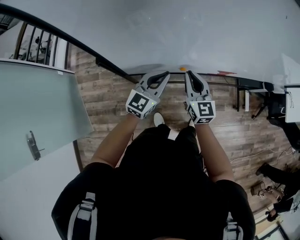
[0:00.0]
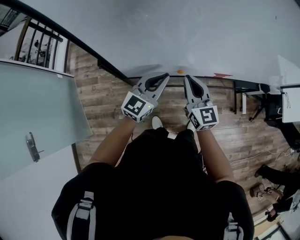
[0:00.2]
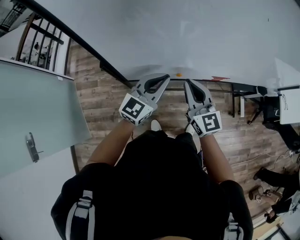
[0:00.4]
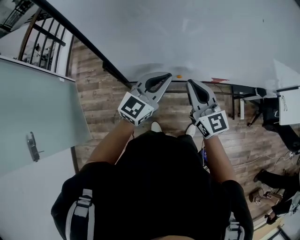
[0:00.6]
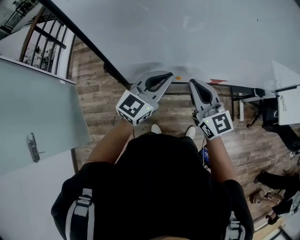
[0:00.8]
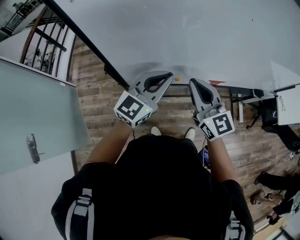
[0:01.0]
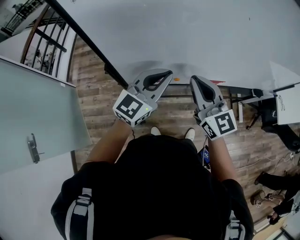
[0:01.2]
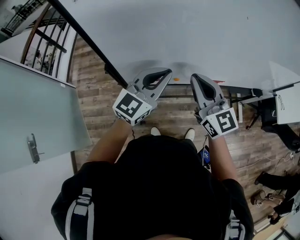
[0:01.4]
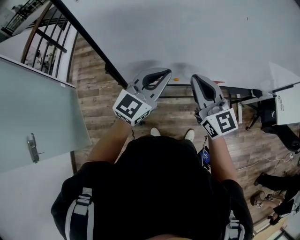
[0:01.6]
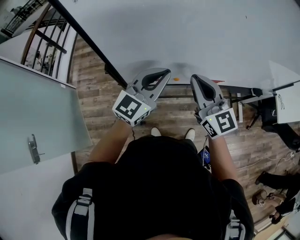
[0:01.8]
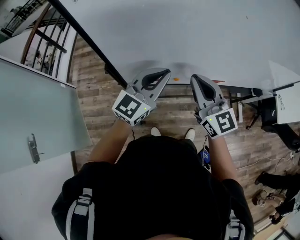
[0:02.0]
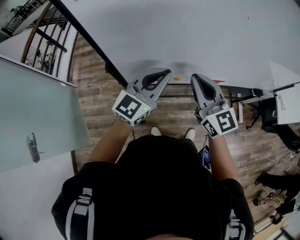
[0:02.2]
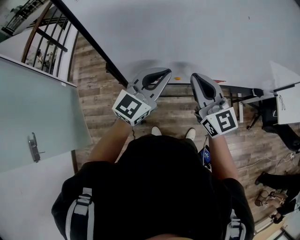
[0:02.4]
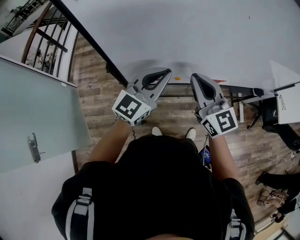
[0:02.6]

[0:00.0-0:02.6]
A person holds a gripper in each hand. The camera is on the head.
0:00.0 to 0:01.2: Both grippers move upward, some 20 cm.
0:01.2 to 0:02.6: Both grippers stay put.

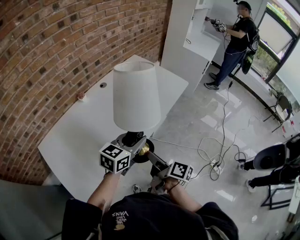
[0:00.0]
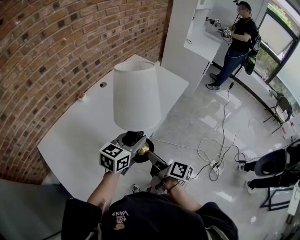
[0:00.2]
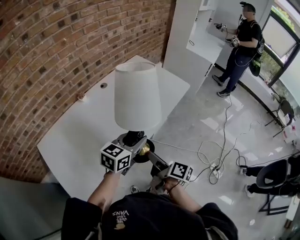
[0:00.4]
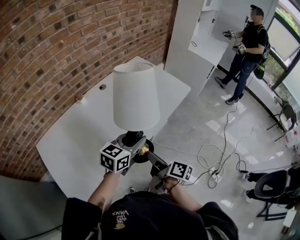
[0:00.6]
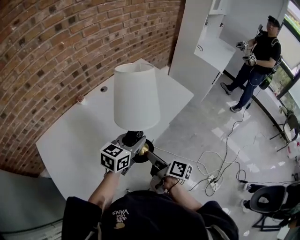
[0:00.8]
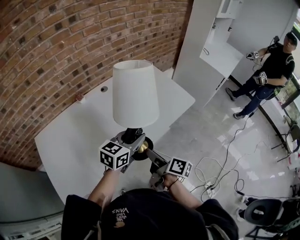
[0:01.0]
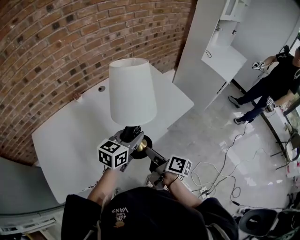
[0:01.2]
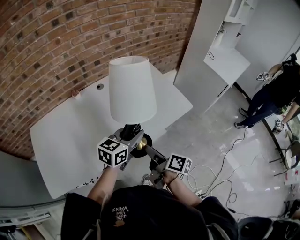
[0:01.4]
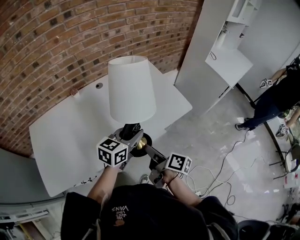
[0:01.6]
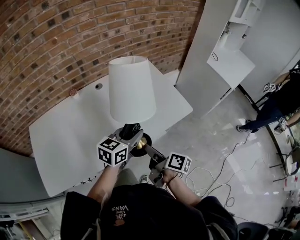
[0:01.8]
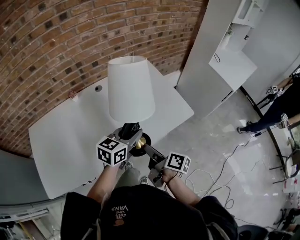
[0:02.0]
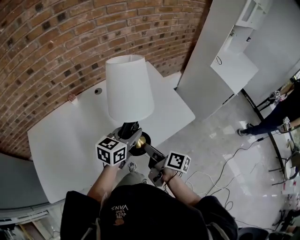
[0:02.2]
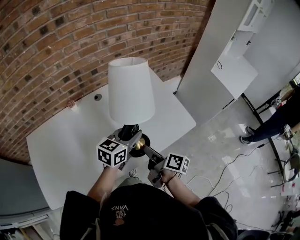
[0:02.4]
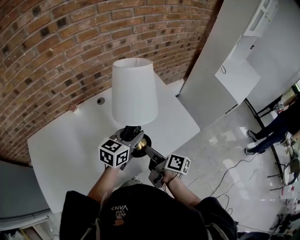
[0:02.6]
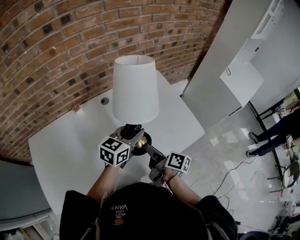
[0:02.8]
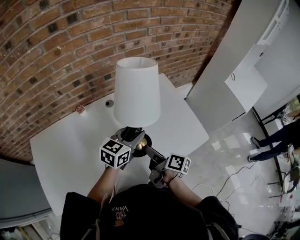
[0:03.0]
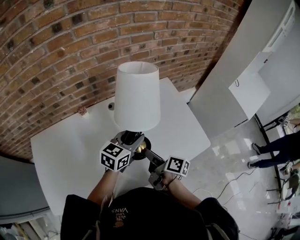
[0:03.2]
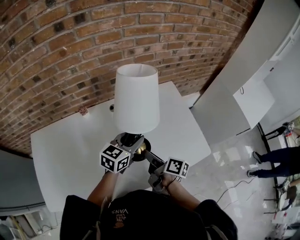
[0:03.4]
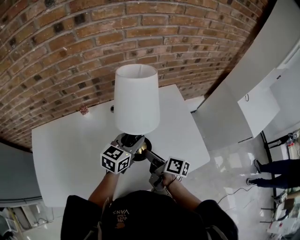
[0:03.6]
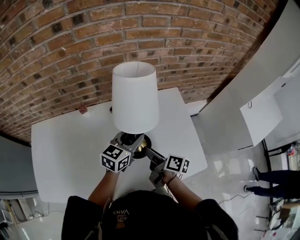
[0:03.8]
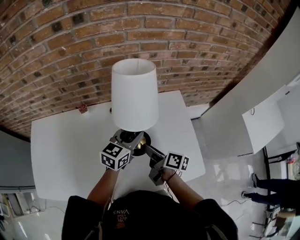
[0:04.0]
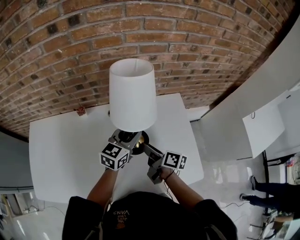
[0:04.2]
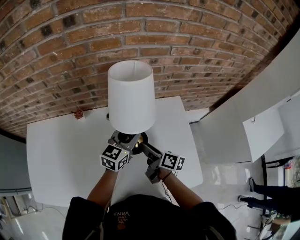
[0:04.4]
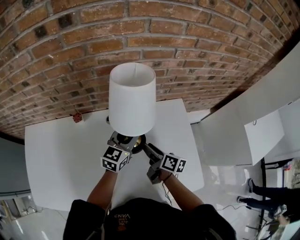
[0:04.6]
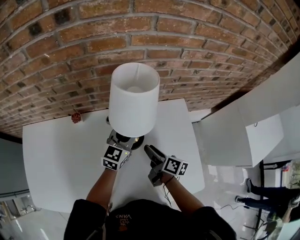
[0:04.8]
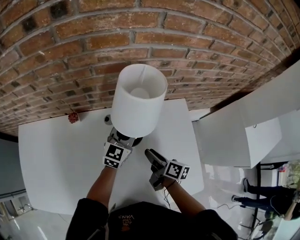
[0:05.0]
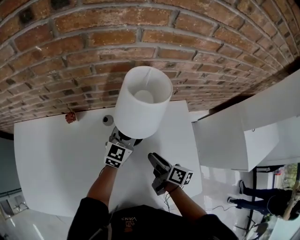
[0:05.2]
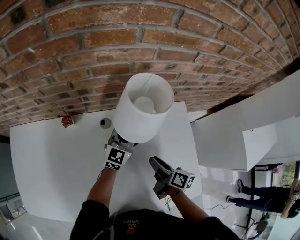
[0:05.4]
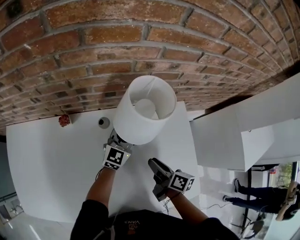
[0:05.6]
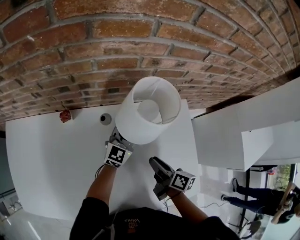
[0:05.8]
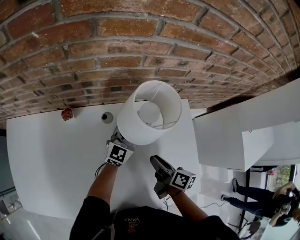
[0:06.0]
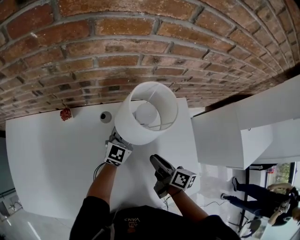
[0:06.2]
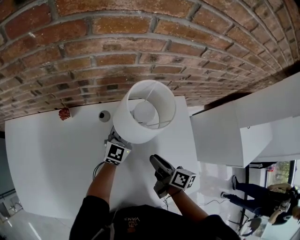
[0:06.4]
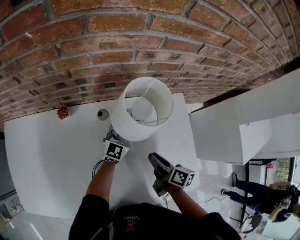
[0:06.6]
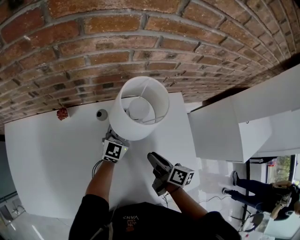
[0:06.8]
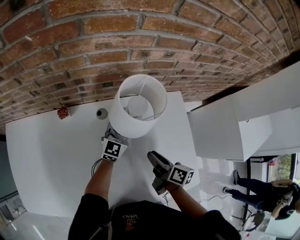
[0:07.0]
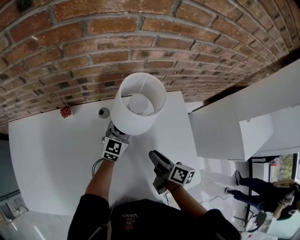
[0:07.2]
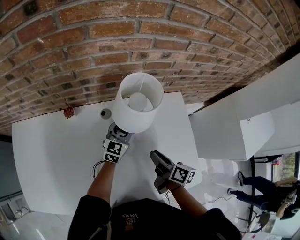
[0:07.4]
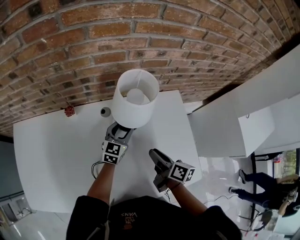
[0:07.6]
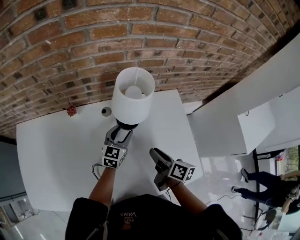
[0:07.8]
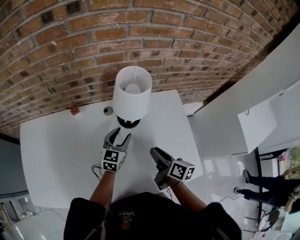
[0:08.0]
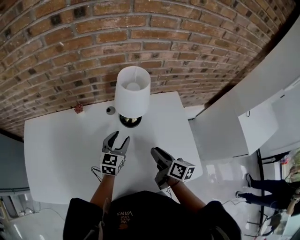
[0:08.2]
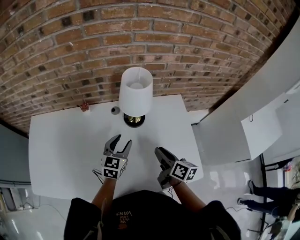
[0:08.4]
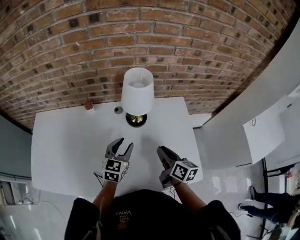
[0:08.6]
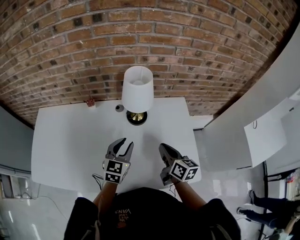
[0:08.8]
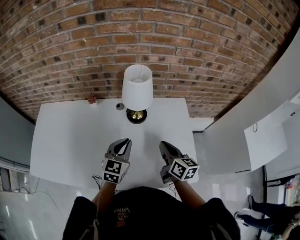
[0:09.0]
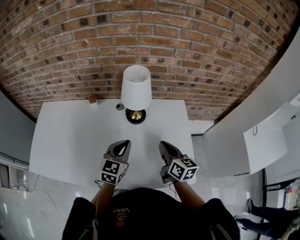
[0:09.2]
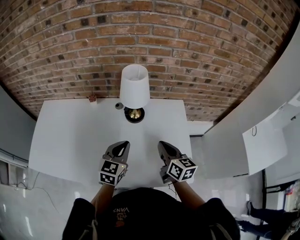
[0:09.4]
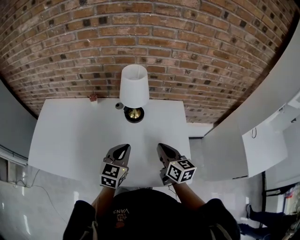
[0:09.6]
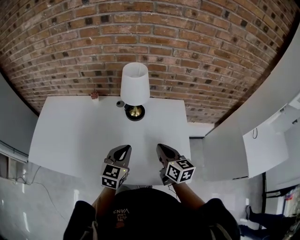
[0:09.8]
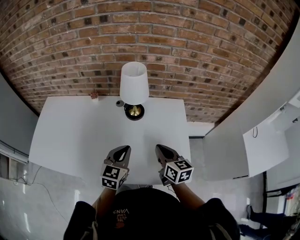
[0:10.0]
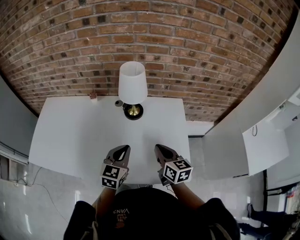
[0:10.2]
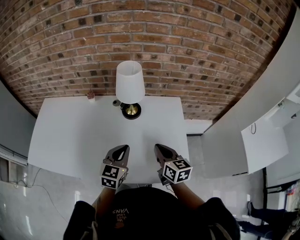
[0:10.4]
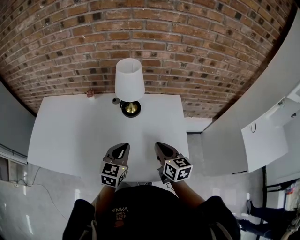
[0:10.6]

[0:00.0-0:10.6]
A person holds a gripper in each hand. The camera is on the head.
0:00.0 to 0:01.6: The two grippers go approximately 25 cm forward and to the right. The left gripper swivels roughly 20 degrees. The right gripper rotates approximately 20 degrees.
0:01.6 to 0:03.0: The grippers both shift forward and to the left by approximately 20 cm.
0:03.0 to 0:04.6: The grippers both shift forward by some 20 cm. The left gripper changes its angle by about 30 degrees, while the right gripper rotates some 20 degrees.
0:04.6 to 0:06.0: The left gripper heads downward and forward, covering about 10 cm.
0:06.0 to 0:07.6: The right gripper shifts by some 5 cm, while the left gripper is displaced backward by approximately 5 cm, and opens its fingers.
0:07.6 to 0:09.0: The left gripper is displaced backward and upward by approximately 25 cm, and closes; the right gripper goes roughly 10 cm upward and backward, turns by some 30 degrees, and closes its fingers.
0:09.0 to 0:10.6: The grippers both shift backward by roughly 5 cm.

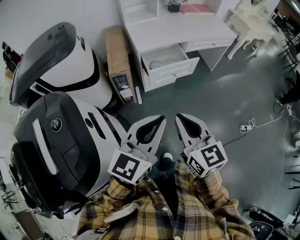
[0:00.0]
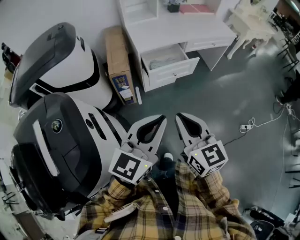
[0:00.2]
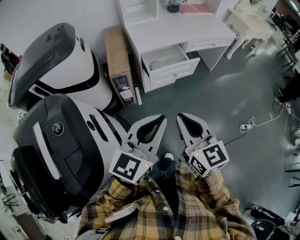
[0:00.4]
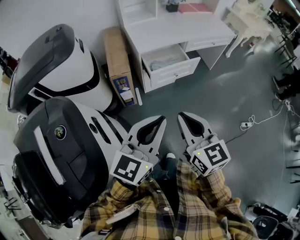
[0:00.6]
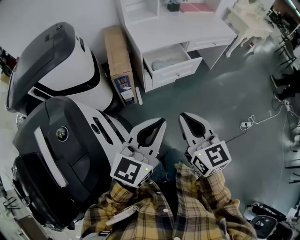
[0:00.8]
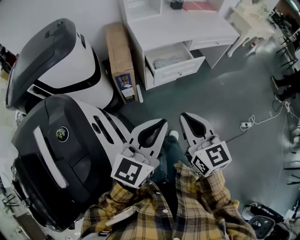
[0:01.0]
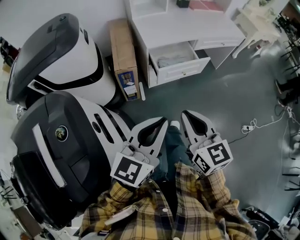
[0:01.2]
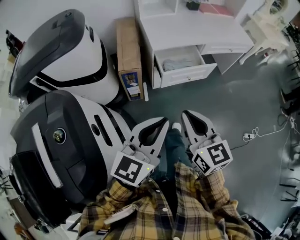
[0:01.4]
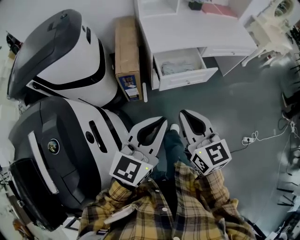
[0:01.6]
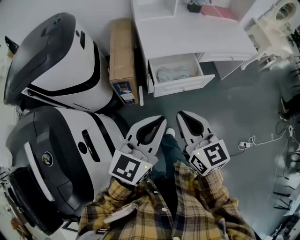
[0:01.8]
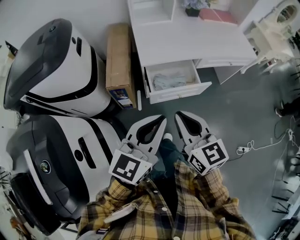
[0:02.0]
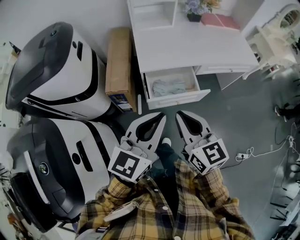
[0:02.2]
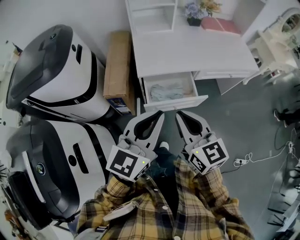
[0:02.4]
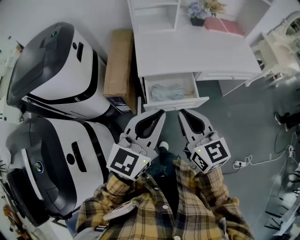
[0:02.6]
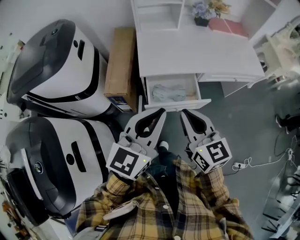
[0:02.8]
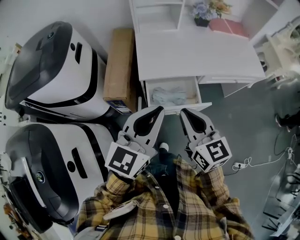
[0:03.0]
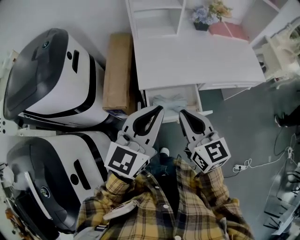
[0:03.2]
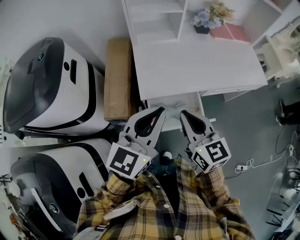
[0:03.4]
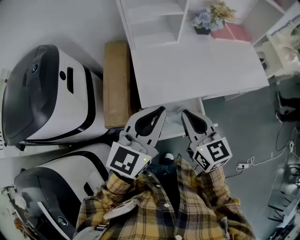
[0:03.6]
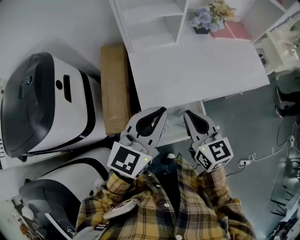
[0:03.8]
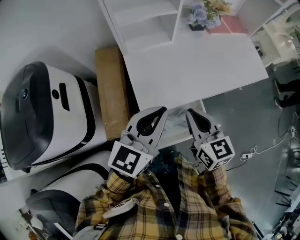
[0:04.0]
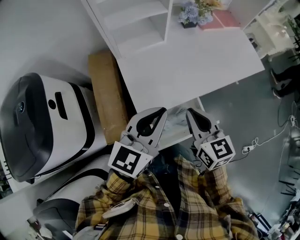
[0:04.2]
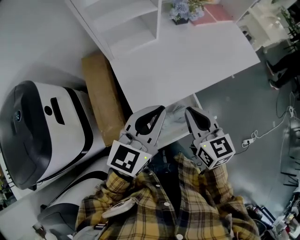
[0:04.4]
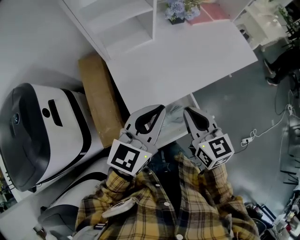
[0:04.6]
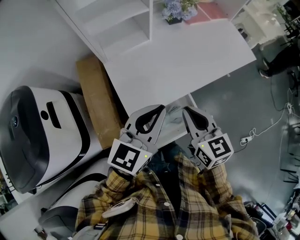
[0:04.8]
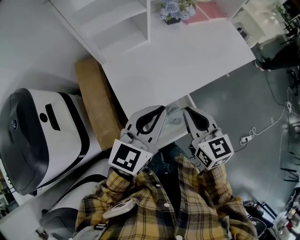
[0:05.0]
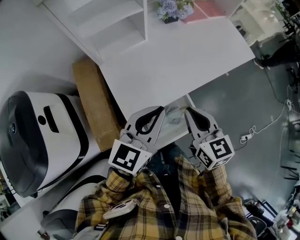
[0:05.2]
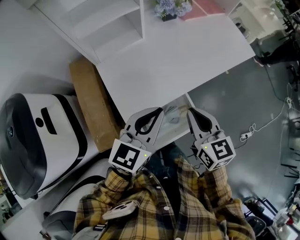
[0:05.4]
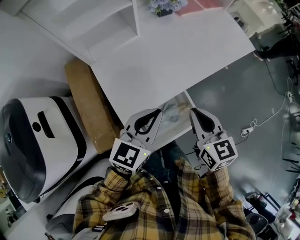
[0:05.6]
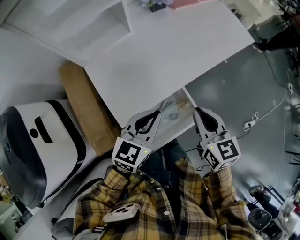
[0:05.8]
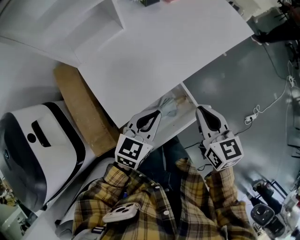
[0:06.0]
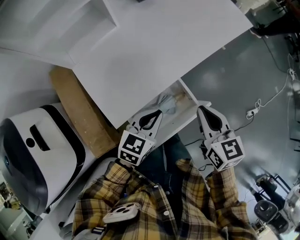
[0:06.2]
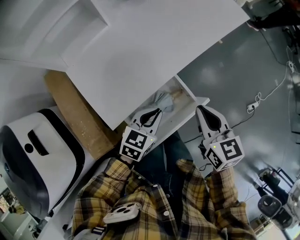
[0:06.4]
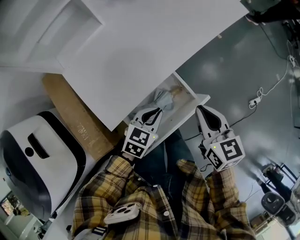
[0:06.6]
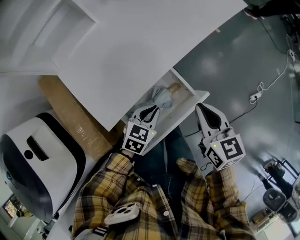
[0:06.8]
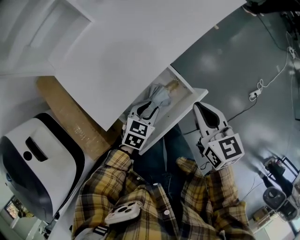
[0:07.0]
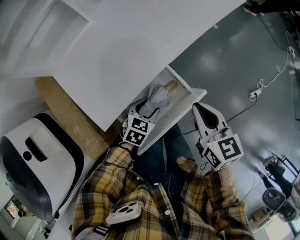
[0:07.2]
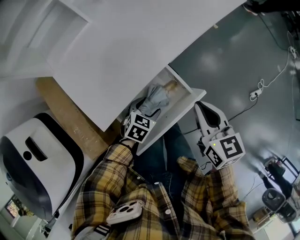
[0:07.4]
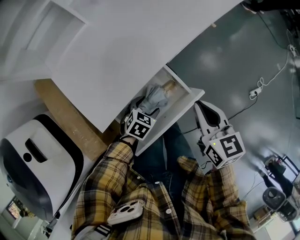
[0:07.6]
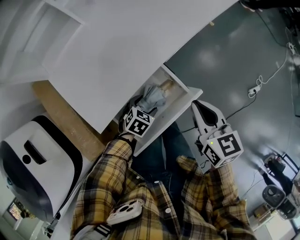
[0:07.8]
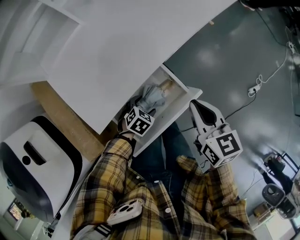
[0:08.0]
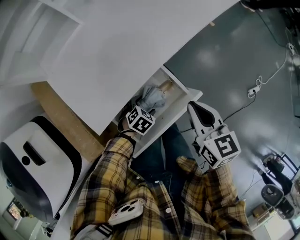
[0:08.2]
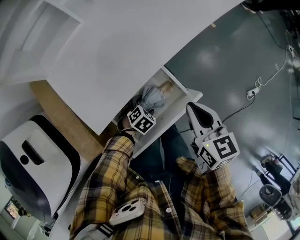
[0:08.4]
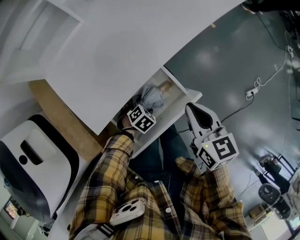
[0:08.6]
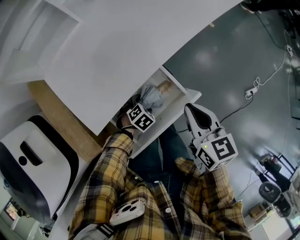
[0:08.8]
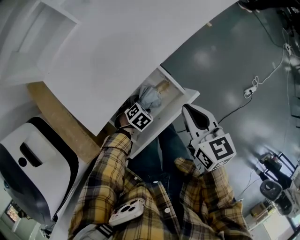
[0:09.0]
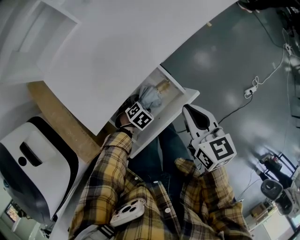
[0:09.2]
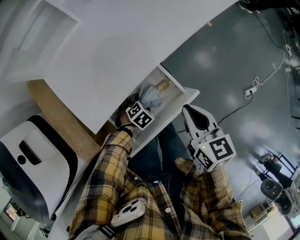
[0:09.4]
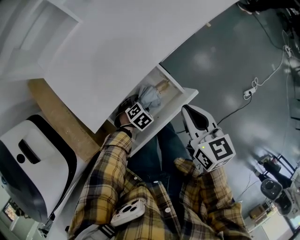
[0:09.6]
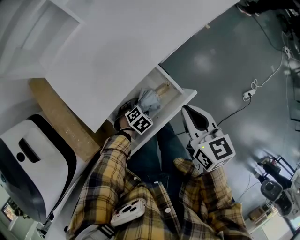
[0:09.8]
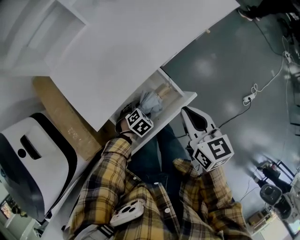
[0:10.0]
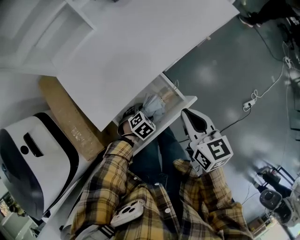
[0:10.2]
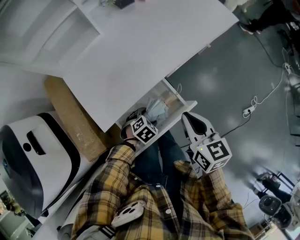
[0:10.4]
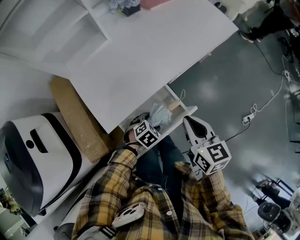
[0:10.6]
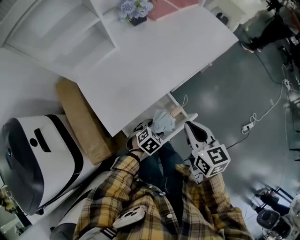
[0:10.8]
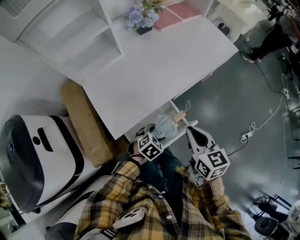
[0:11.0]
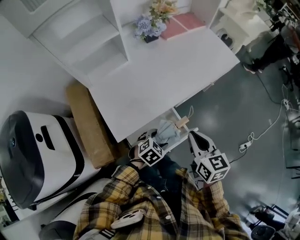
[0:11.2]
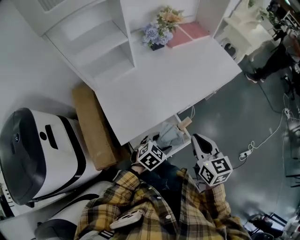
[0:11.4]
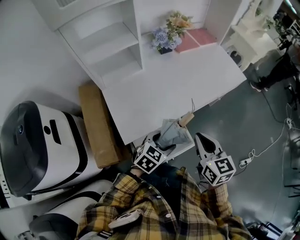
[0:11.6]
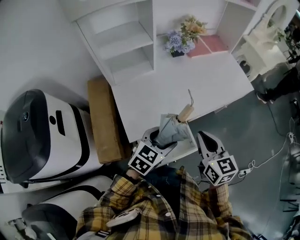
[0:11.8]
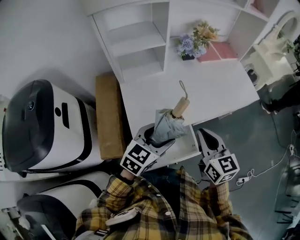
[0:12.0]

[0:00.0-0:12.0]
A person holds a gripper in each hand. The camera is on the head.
0:00.0 to 0:01.6: Both grippers travel together forward, roughly 10 cm.
0:01.6 to 0:03.0: The grippers both shift forward and to the right by some 25 cm.
0:03.0 to 0:04.4: The grippers both shift forward by approximately 20 cm. The right gripper swivels roughly 20 degrees. The left gripper swivels approximately 20 degrees.
0:04.4 to 0:06.0: The left gripper shifts about 20 cm downward and to the right, and swivels approximately 20 degrees. Meanwhile the right gripper heads to the right and downward, covering some 15 cm.
0:06.0 to 0:07.6: The left gripper travels downward by some 25 cm, angles its fingers downward, by about 30 degrees, and opens up. Meanwhile the right gripper moves downward and to the right, roughly 10 cm.
0:07.6 to 0:09.0: The left gripper is displaced downward by approximately 10 cm, and rotates some 20 degrees.
0:09.0 to 0:10.4: The left gripper travels upward by roughly 5 cm.
0:10.4 to 0:12.0: The left gripper shifts about 35 cm upward, and tilts its fingers roughly 40 degrees upward, while the right gripper travels upward and to the left by approximately 15 cm, and swivels approximately 30 degrees.
